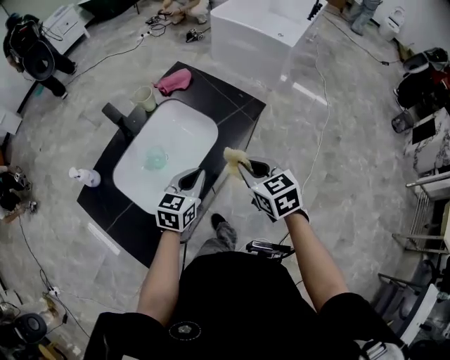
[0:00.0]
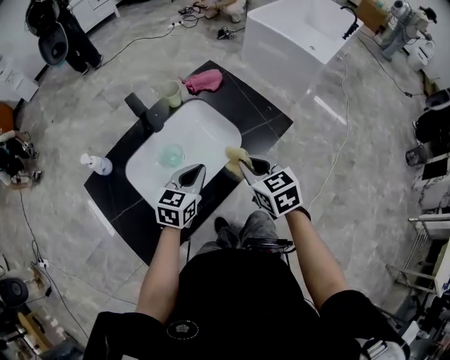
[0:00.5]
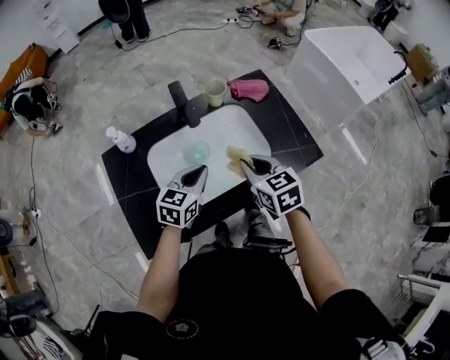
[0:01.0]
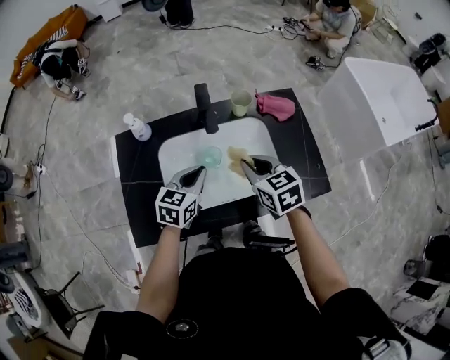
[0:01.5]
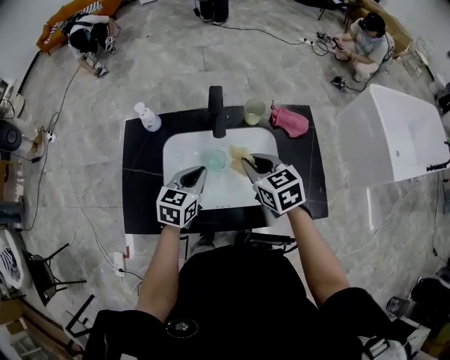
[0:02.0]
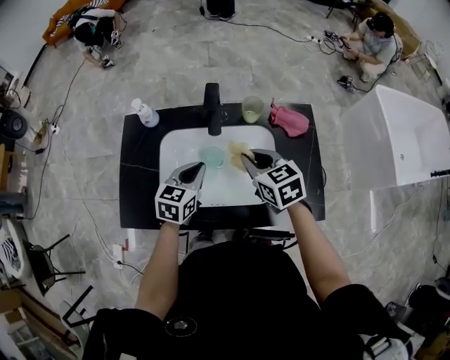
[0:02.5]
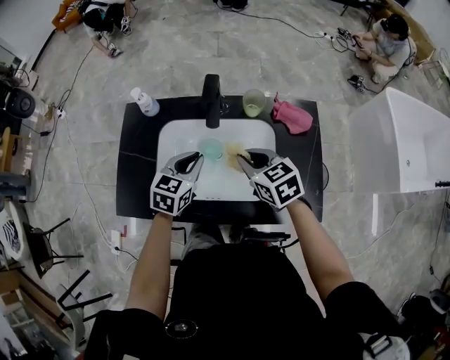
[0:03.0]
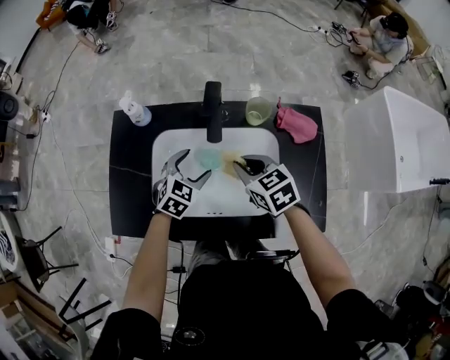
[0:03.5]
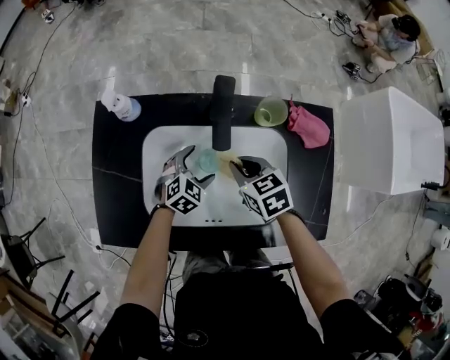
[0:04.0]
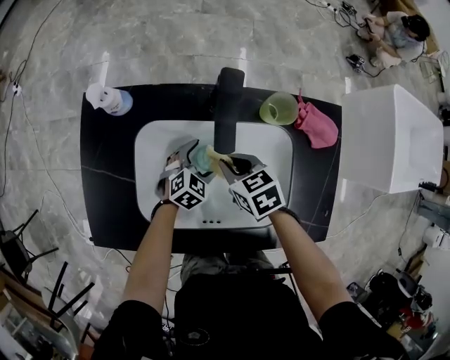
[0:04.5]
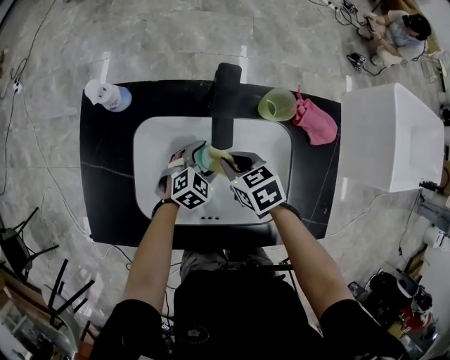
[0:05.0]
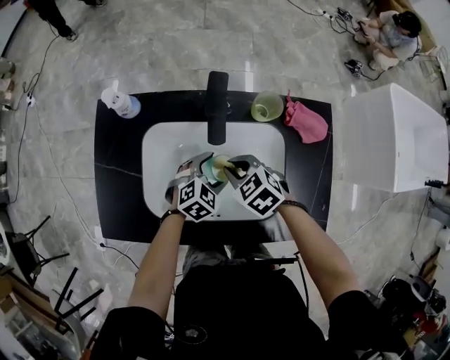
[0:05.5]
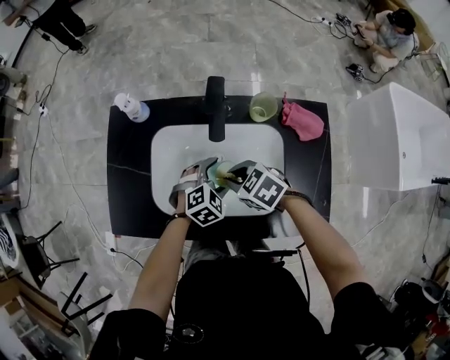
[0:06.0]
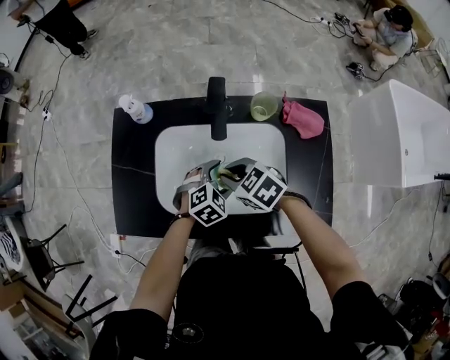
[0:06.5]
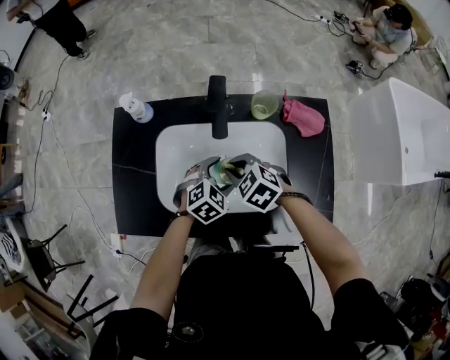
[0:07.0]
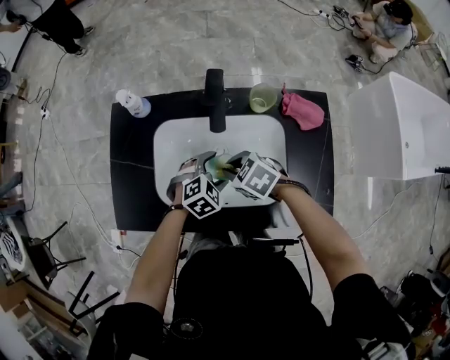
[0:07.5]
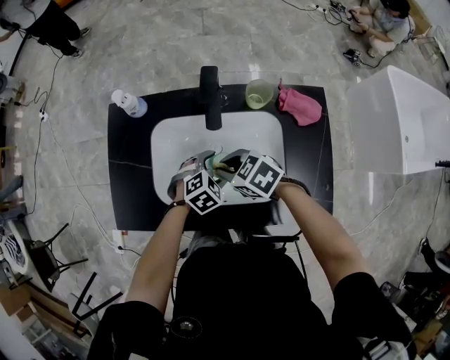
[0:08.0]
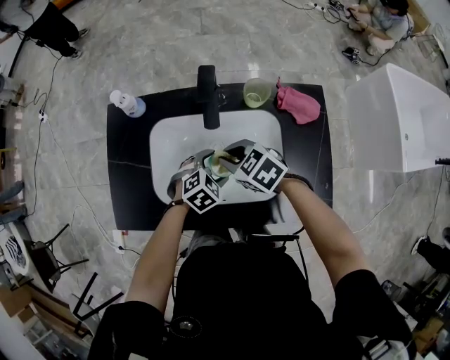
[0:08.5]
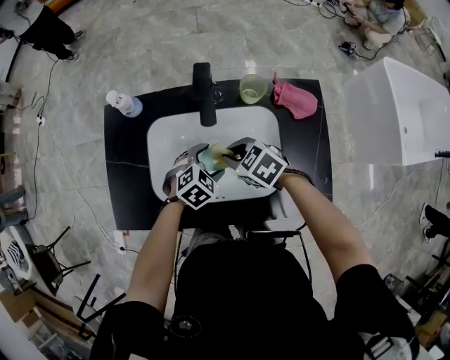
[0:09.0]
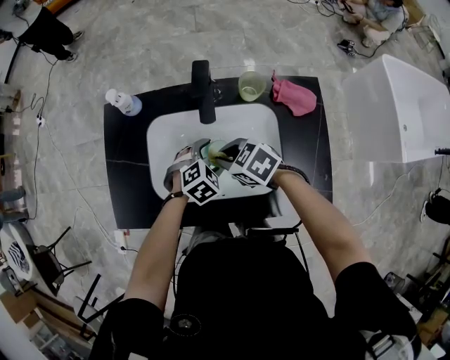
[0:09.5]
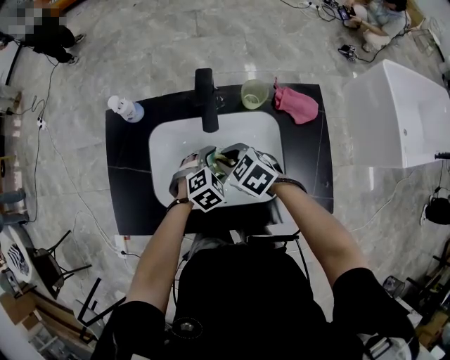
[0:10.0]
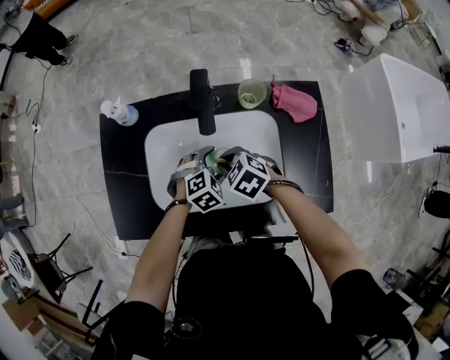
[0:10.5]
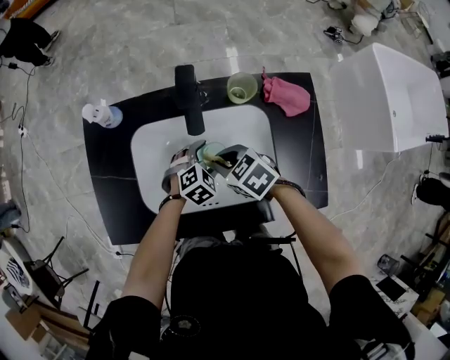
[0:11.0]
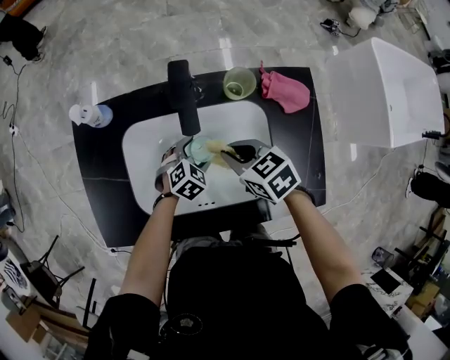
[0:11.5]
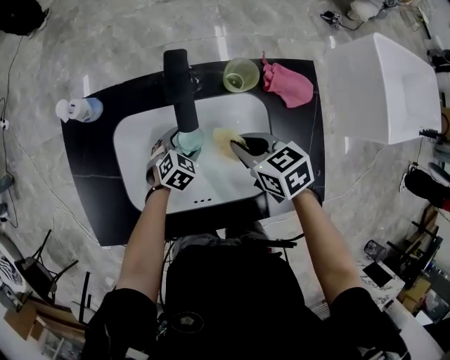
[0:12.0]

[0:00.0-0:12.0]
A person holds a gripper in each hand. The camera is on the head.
0:00.0 to 0:02.0: The left gripper moves roughly 20 cm, and swivels about 50 degrees. The right gripper changes place by approximately 25 cm, and rotates about 50 degrees.
0:02.0 to 0:04.0: The right gripper travels downward and forward by approximately 15 cm; the left gripper shifts approximately 20 cm downward, changes its angle by approximately 30 degrees, and opens.
0:04.0 to 0:06.0: The right gripper goes approximately 5 cm backward, and rotates roughly 30 degrees. The left gripper shifts roughly 10 cm upward and backward.
0:06.0 to 0:10.0: The grippers stay close to where they were, moving slightly.
0:10.0 to 0:12.0: The left gripper travels downward and forward by roughly 10 cm; the right gripper is displaced to the right by approximately 10 cm, and swivels approximately 30 degrees.

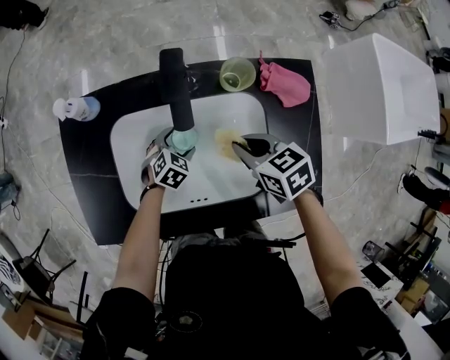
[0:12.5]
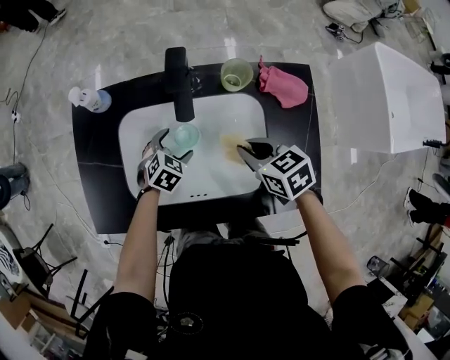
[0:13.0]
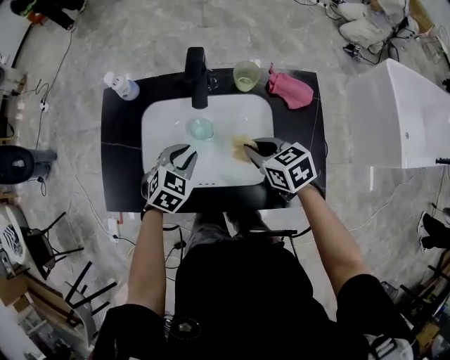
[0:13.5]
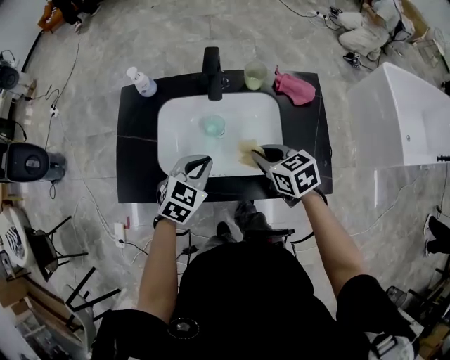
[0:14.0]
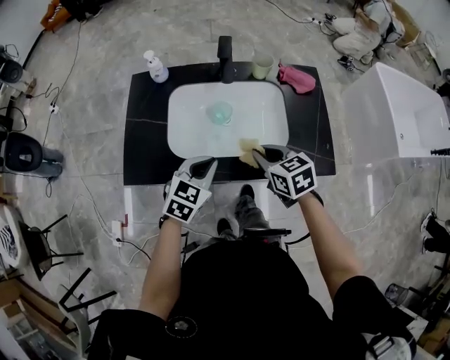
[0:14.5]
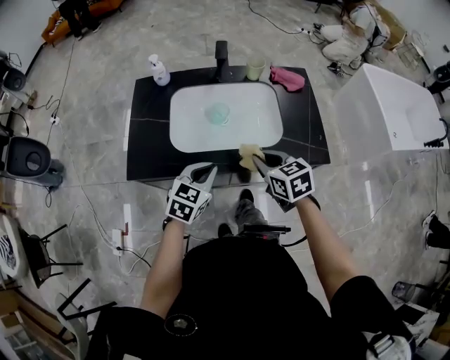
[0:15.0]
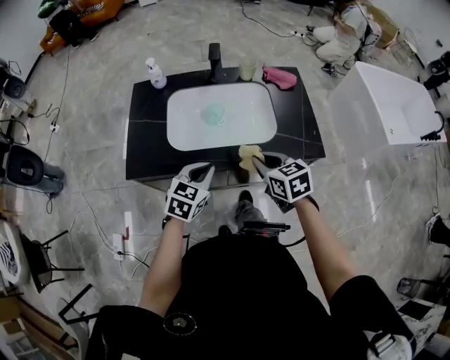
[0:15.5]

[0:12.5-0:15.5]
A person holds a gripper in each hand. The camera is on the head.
0:12.5 to 0:14.0: The left gripper travels upward and backward by some 25 cm, and closes its fingers. The right gripper heads backward and upward, covering some 10 cm.
0:14.0 to 0:15.5: The grippers both shift backward by some 15 cm.

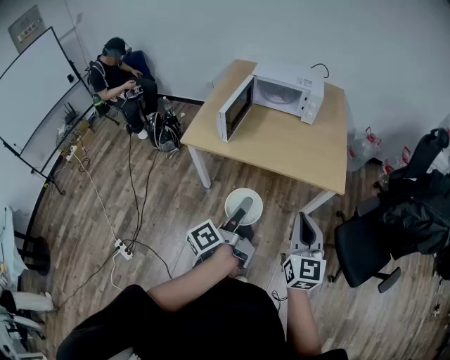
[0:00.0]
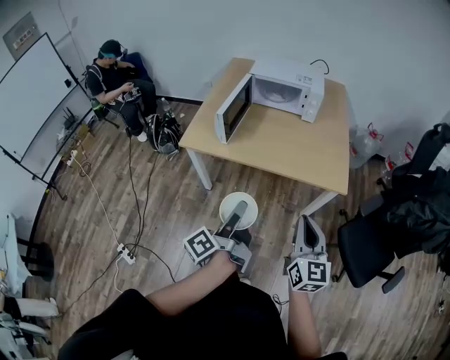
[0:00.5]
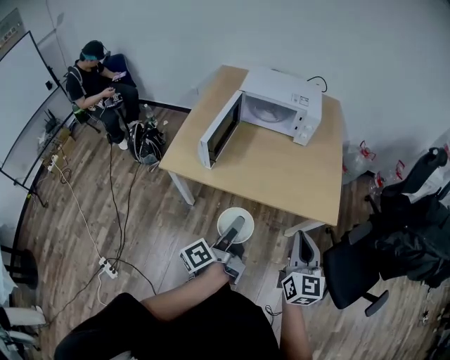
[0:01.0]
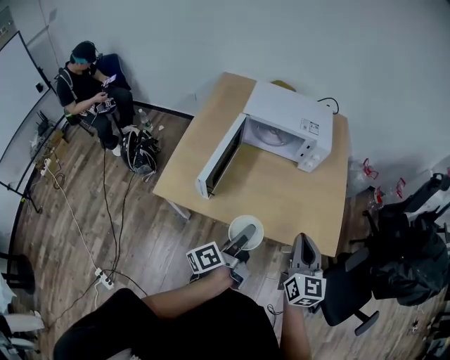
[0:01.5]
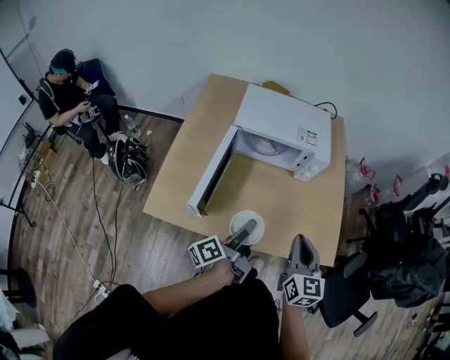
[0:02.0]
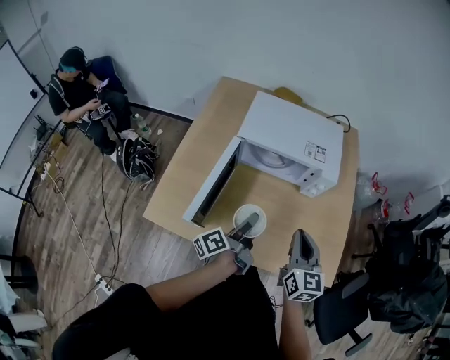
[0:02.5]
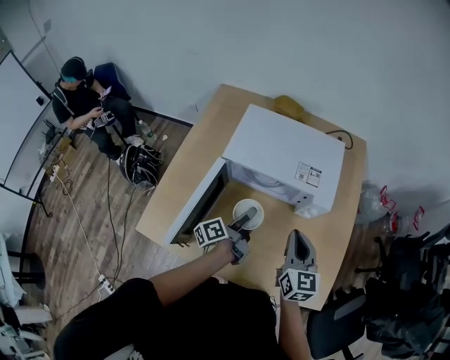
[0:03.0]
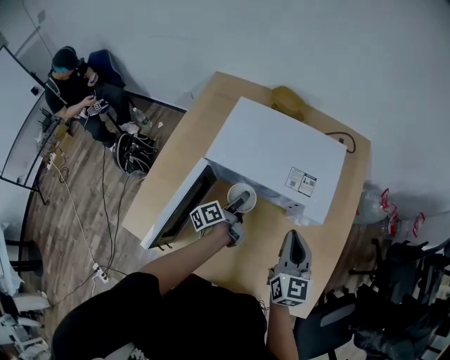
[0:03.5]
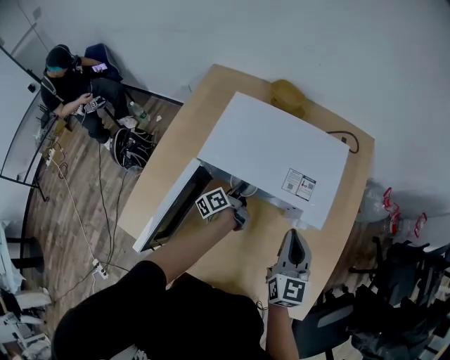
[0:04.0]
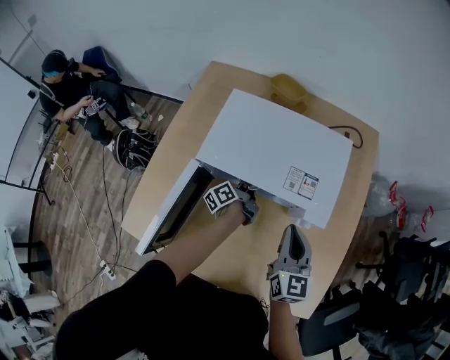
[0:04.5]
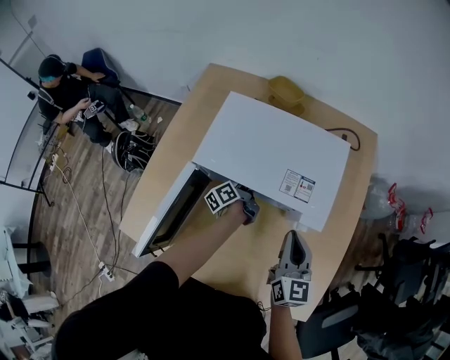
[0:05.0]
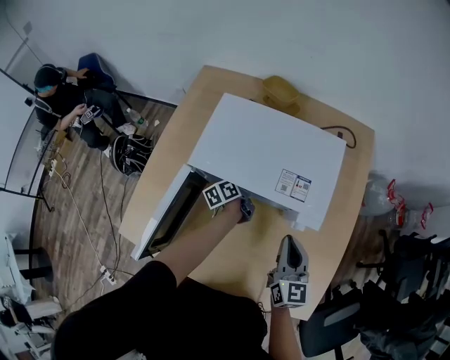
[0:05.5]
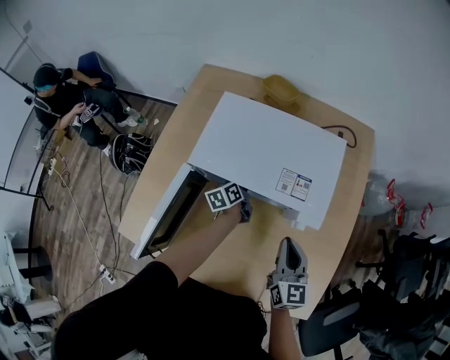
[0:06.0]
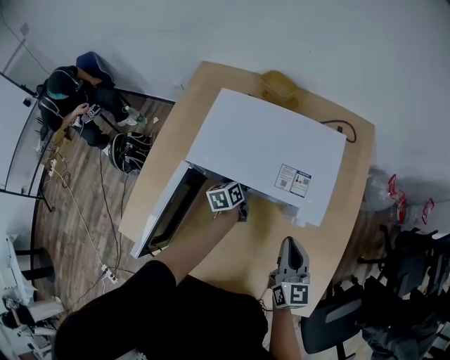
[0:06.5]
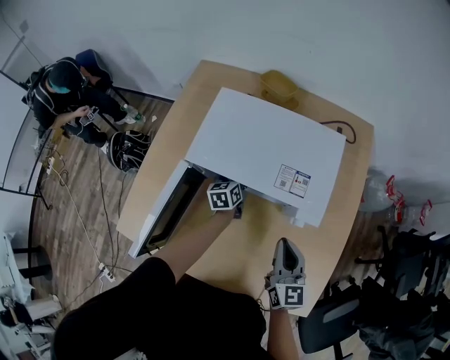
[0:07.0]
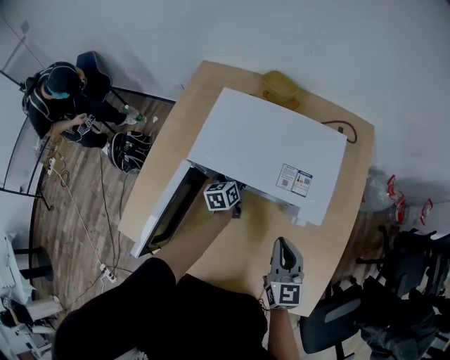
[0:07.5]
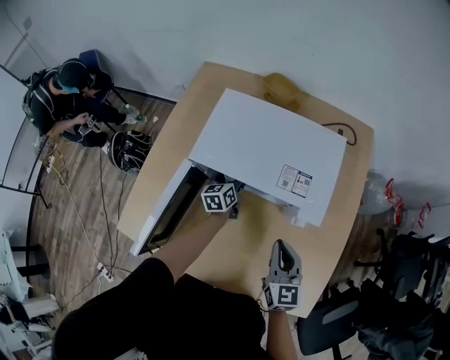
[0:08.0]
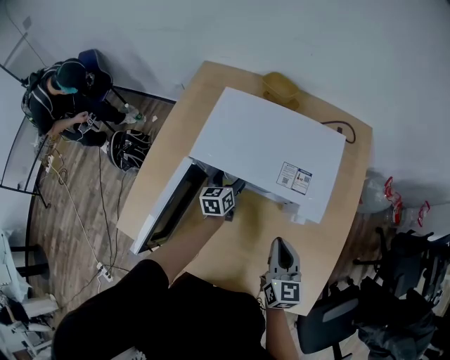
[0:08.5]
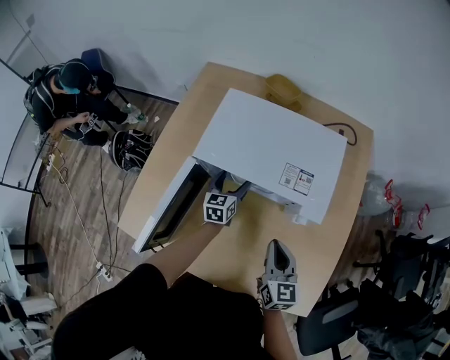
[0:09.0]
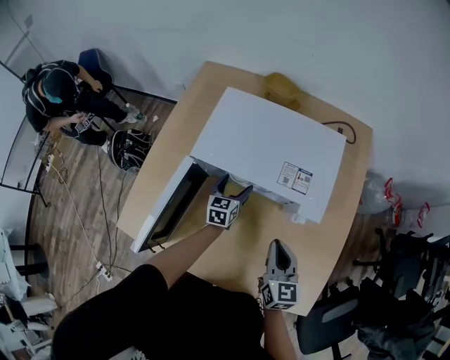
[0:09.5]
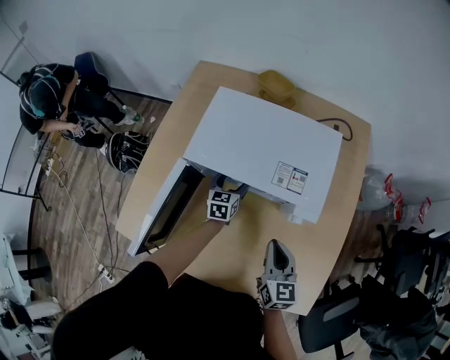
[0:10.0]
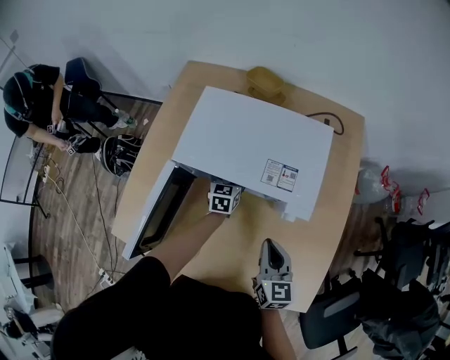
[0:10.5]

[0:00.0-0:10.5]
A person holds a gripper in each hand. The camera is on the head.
0:00.0 to 0:02.0: Both grippers move forward, approximately 40 cm.
0:02.0 to 0:04.0: The right gripper shifts roughly 30 cm forward. Meanwhile the left gripper travels forward and downward by about 40 cm.
0:04.0 to 0:06.5: The left gripper rotates approximately 40 degrees; the right gripper ends up approximately 5 cm from where it was.
0:06.5 to 0:08.5: There are only small adjustments of the grippers.
0:08.5 to 0:10.5: The left gripper is displaced to the right by roughly 5 cm.

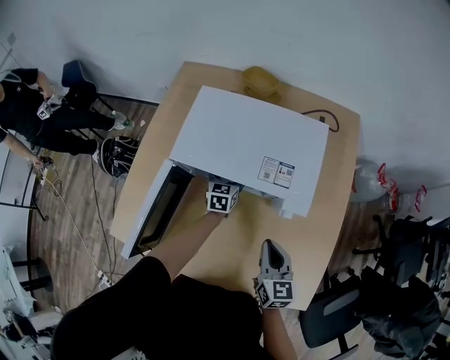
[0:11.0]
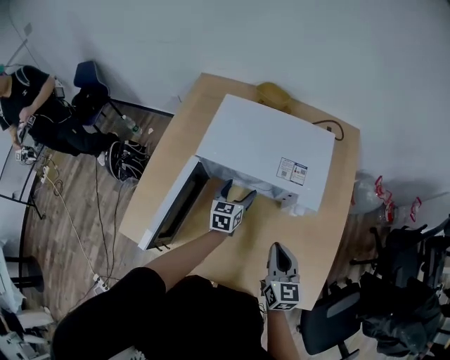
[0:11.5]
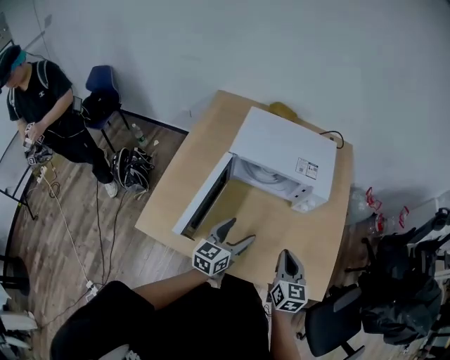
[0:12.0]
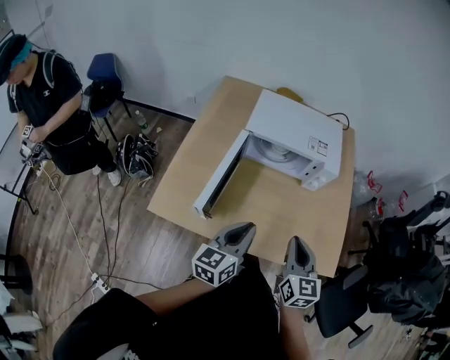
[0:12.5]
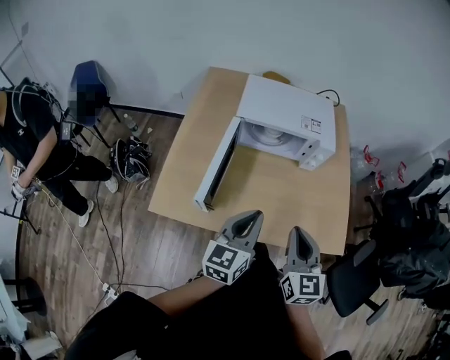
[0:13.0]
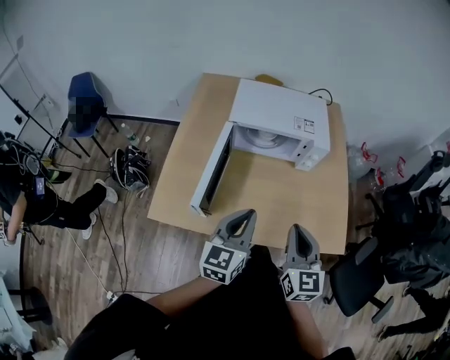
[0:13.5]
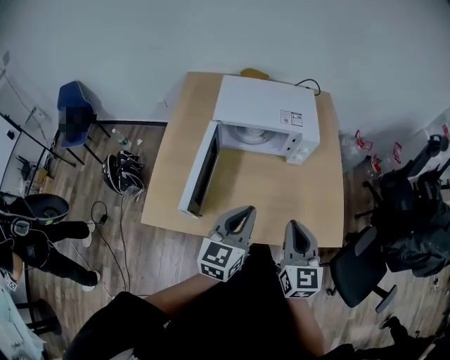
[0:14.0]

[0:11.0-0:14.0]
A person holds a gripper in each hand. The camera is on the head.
0:11.0 to 0:12.5: The left gripper heads backward and upward, covering approximately 50 cm, turns by approximately 30 degrees, and closes up. Meanwhile the right gripper travels backward, upward and to the left by roughly 25 cm.
0:12.5 to 0:14.0: The grippers make only small movements.
